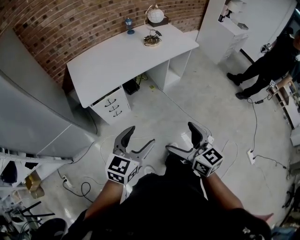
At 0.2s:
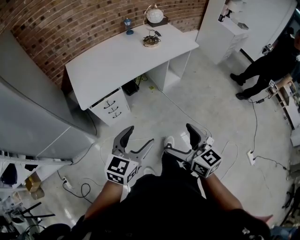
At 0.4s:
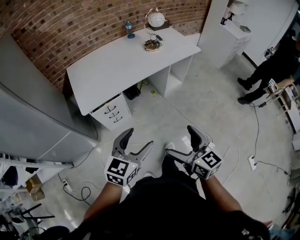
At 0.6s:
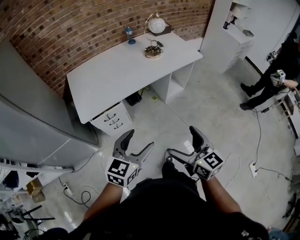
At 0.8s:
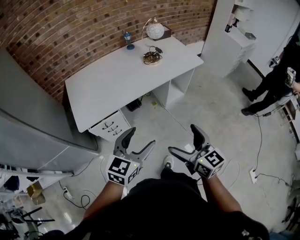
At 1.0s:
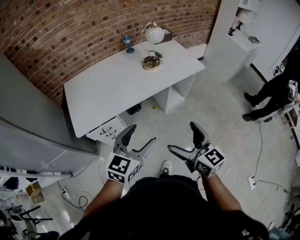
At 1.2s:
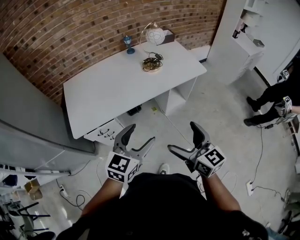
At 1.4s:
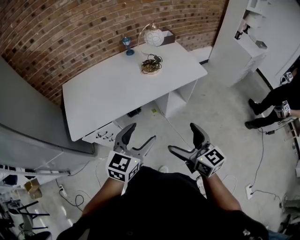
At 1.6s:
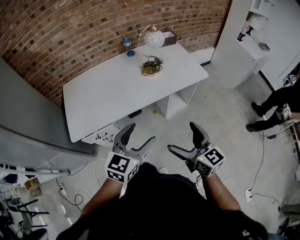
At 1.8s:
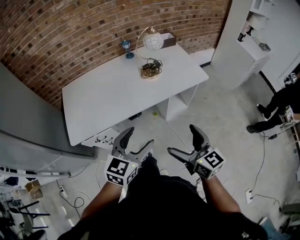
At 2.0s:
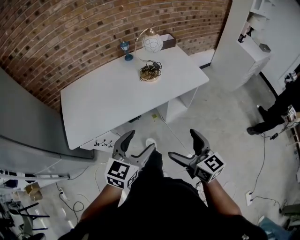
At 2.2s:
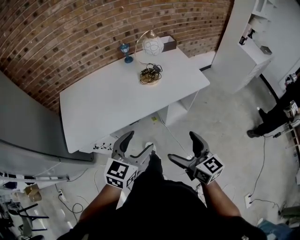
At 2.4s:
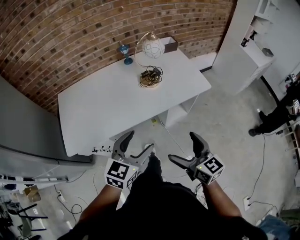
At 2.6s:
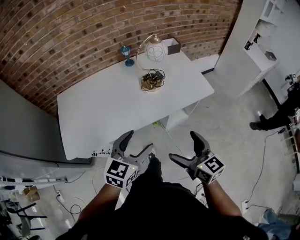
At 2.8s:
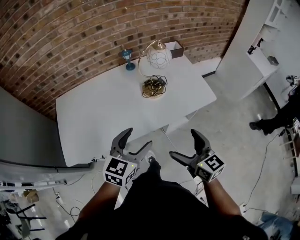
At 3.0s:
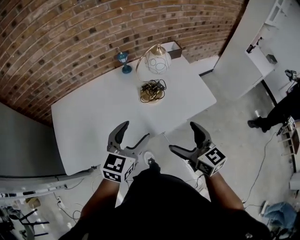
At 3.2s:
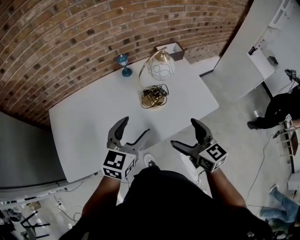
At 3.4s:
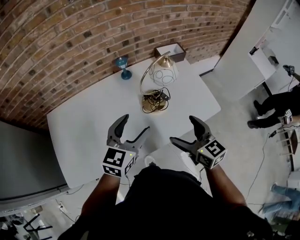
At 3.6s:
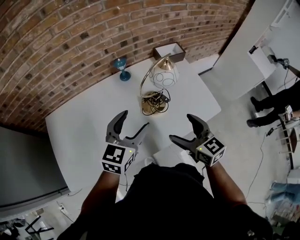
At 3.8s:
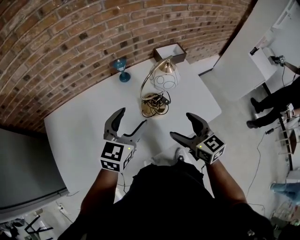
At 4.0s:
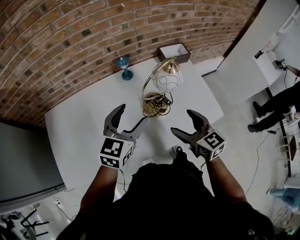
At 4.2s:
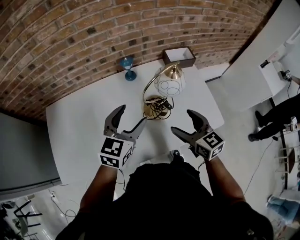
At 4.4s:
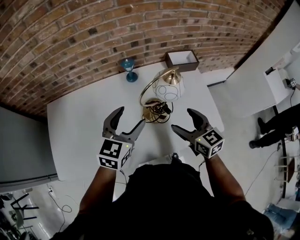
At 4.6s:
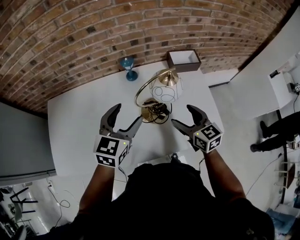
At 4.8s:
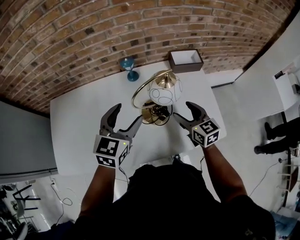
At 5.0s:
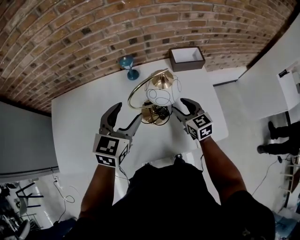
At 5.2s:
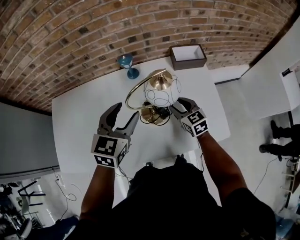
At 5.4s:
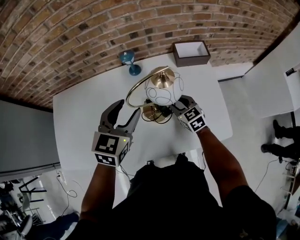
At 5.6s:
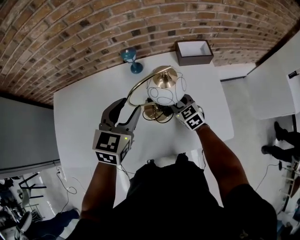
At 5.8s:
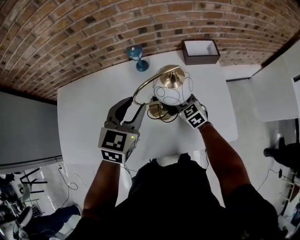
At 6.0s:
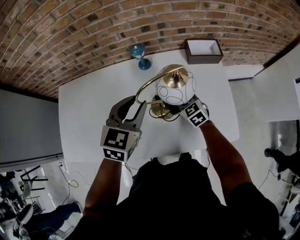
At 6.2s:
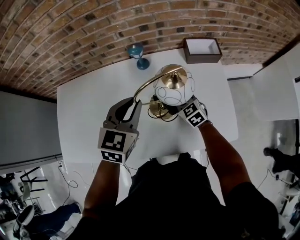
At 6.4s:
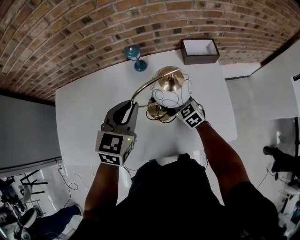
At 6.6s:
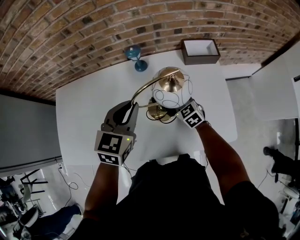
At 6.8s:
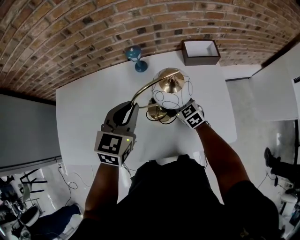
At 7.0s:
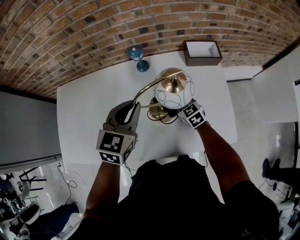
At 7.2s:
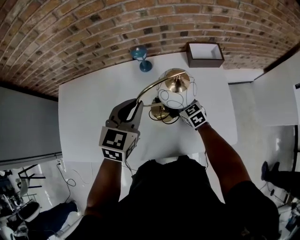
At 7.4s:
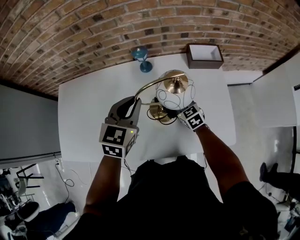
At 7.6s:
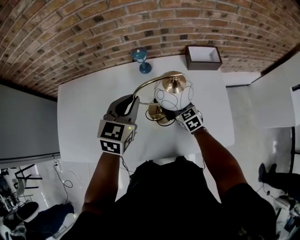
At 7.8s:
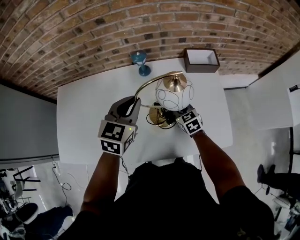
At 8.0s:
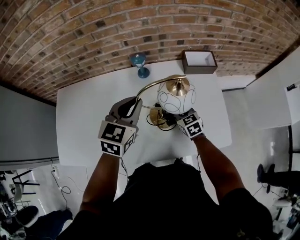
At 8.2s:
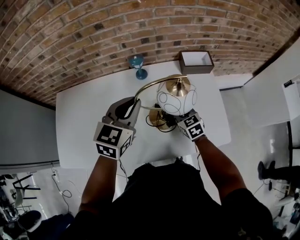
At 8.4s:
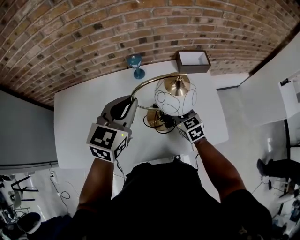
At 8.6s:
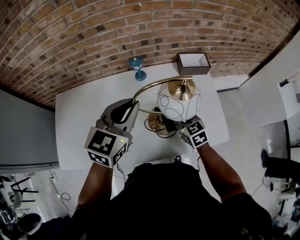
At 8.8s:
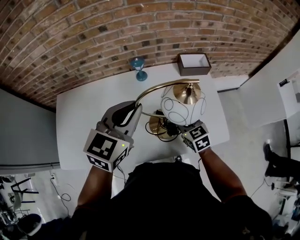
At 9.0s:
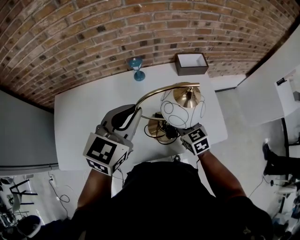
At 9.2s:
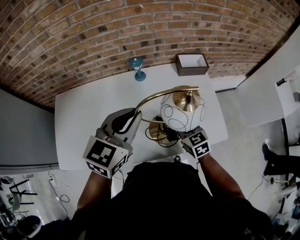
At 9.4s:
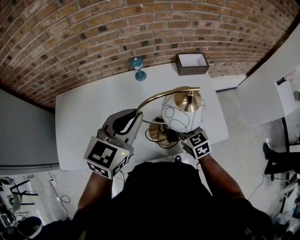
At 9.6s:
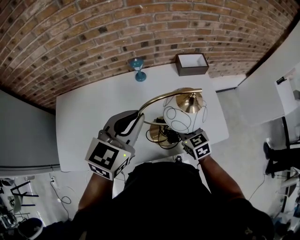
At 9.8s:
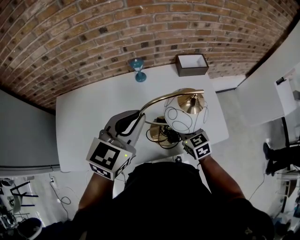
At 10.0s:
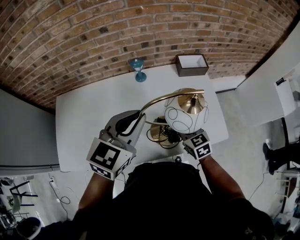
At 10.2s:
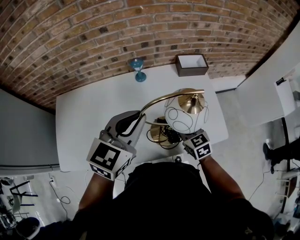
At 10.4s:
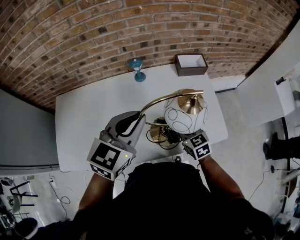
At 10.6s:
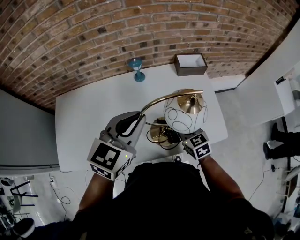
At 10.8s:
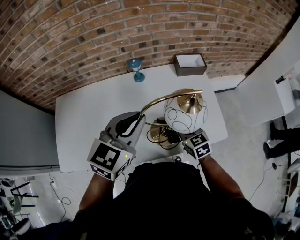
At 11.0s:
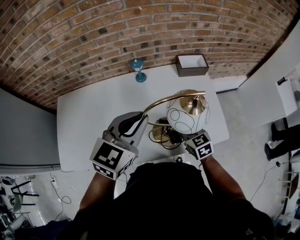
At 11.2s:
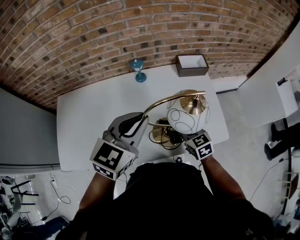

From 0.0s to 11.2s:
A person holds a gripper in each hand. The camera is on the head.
From 0.0s to 1.6s: Both grippers travel together forward and to the right, approximately 35 cm.
From 1.6s to 3.2s: Both grippers travel together forward, about 30 cm.
From 3.2s to 4.8s: The grippers both shift forward by about 20 cm.
From 4.8s to 6.4s: The left gripper closes up; the right gripper heads downward and forward, covering about 15 cm, turns by roughly 30 degrees, and closes its fingers.
From 6.4s to 8.0s: There are only small adjustments of the grippers.
From 8.0s to 9.6s: Both grippers move backward and upward, some 15 cm.
From 9.6s to 11.2s: The grippers make only small movements.

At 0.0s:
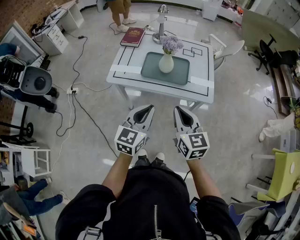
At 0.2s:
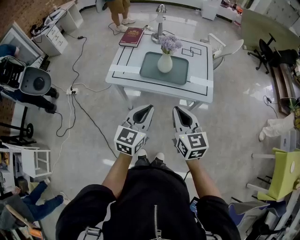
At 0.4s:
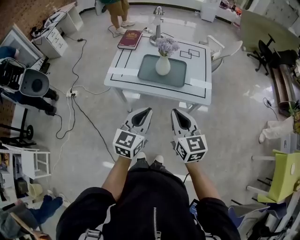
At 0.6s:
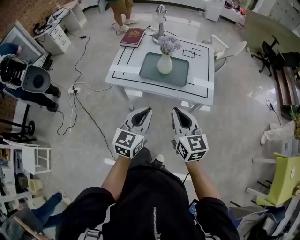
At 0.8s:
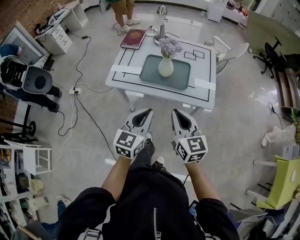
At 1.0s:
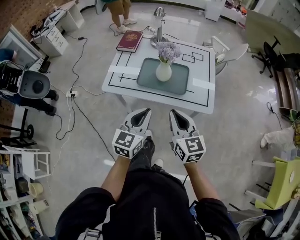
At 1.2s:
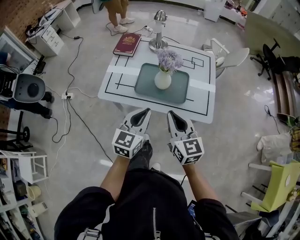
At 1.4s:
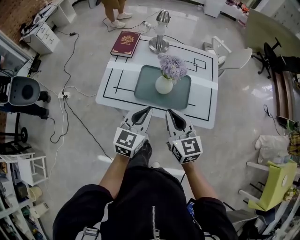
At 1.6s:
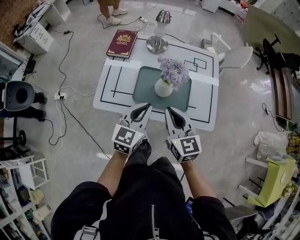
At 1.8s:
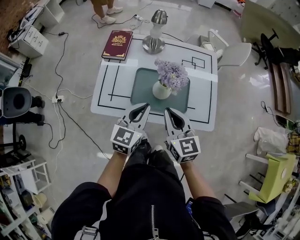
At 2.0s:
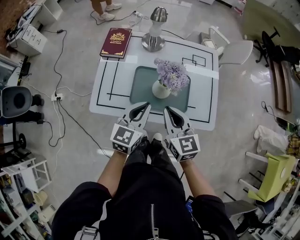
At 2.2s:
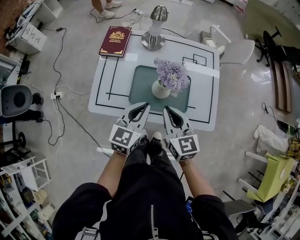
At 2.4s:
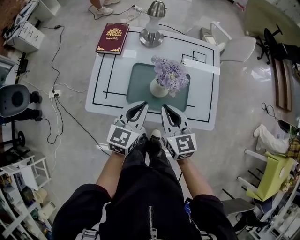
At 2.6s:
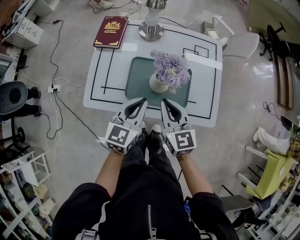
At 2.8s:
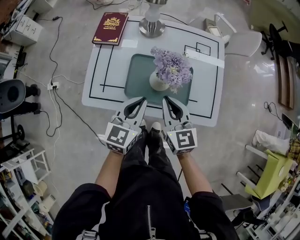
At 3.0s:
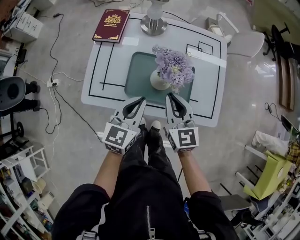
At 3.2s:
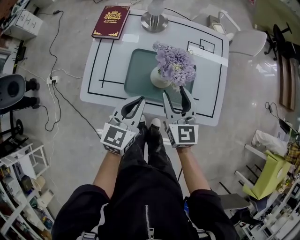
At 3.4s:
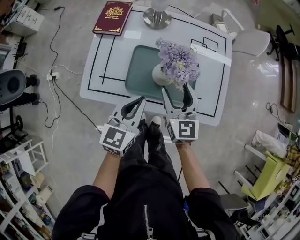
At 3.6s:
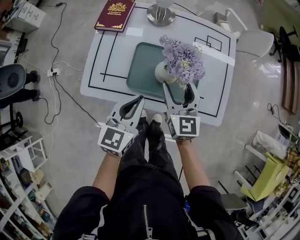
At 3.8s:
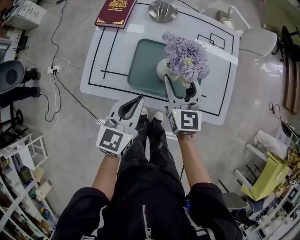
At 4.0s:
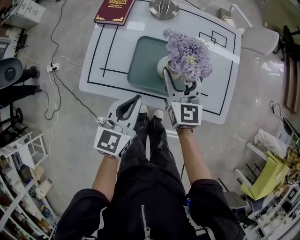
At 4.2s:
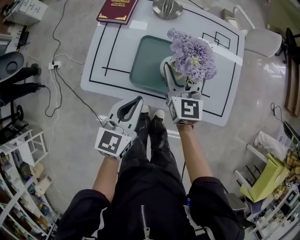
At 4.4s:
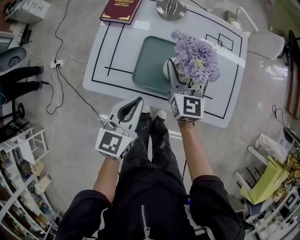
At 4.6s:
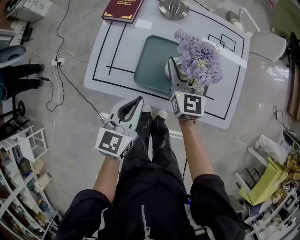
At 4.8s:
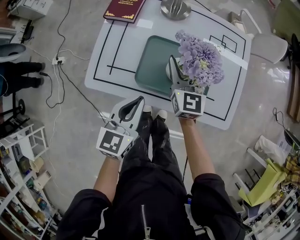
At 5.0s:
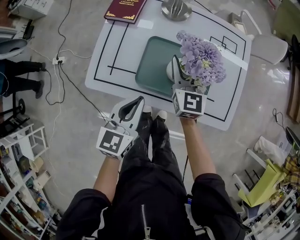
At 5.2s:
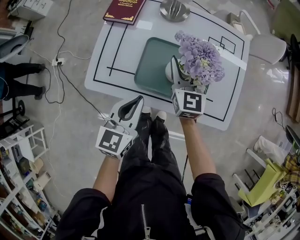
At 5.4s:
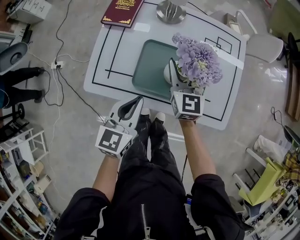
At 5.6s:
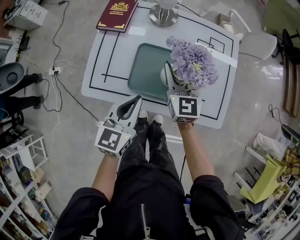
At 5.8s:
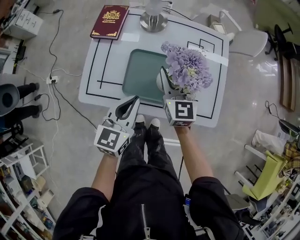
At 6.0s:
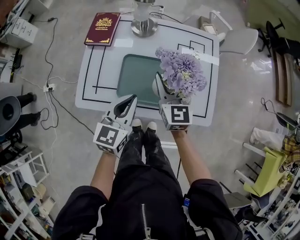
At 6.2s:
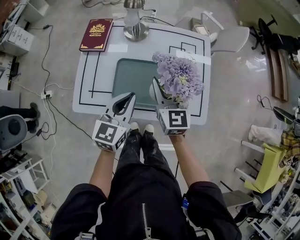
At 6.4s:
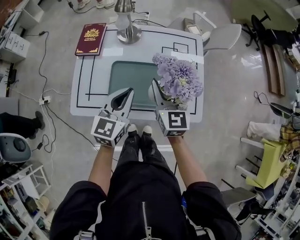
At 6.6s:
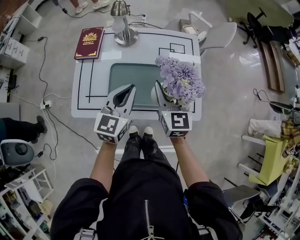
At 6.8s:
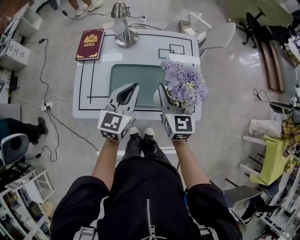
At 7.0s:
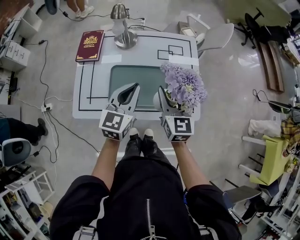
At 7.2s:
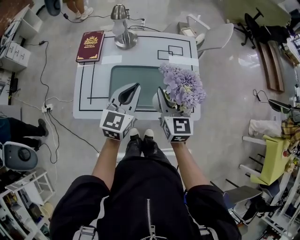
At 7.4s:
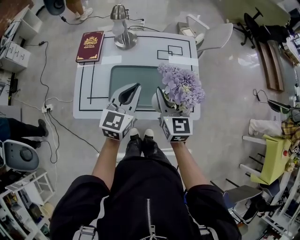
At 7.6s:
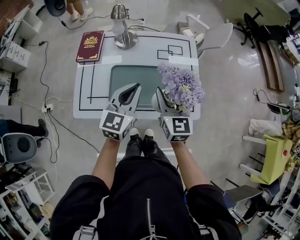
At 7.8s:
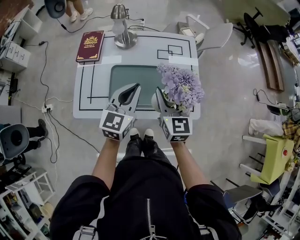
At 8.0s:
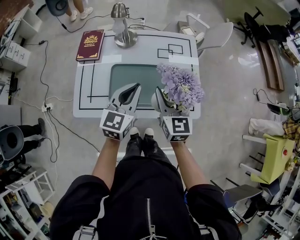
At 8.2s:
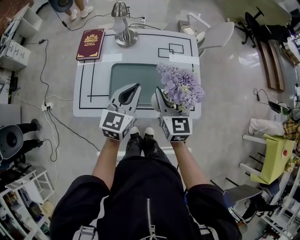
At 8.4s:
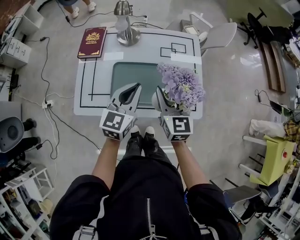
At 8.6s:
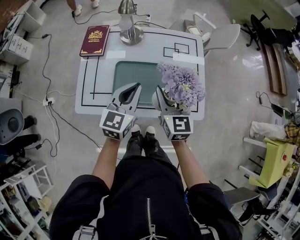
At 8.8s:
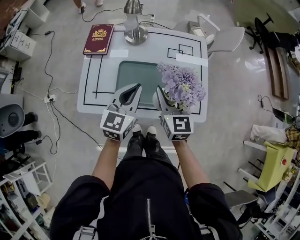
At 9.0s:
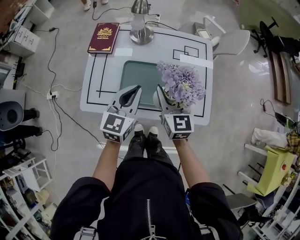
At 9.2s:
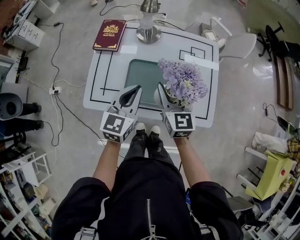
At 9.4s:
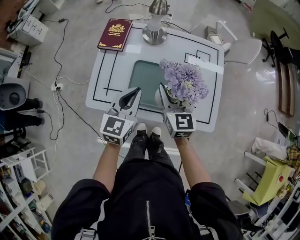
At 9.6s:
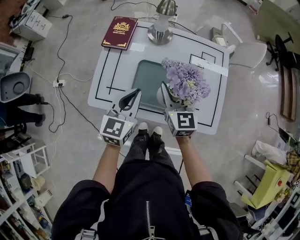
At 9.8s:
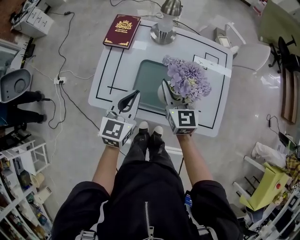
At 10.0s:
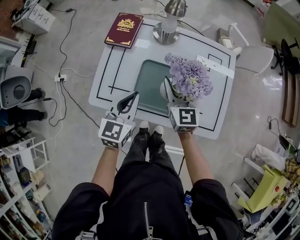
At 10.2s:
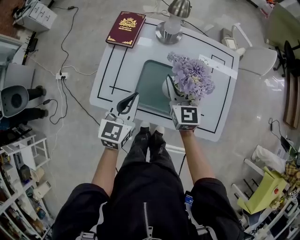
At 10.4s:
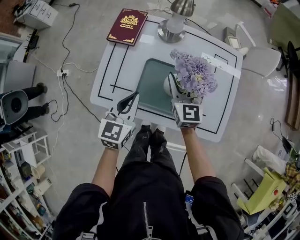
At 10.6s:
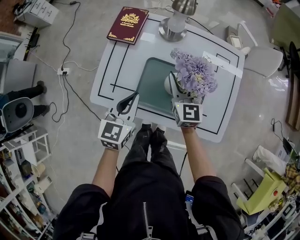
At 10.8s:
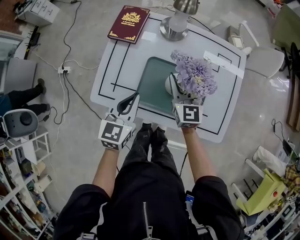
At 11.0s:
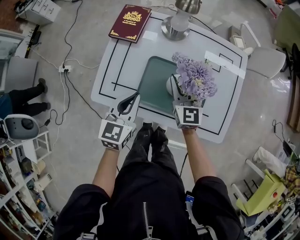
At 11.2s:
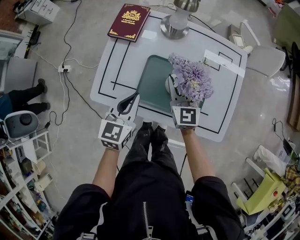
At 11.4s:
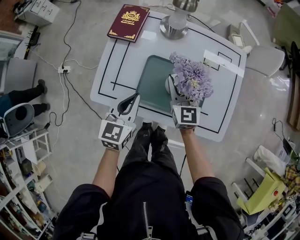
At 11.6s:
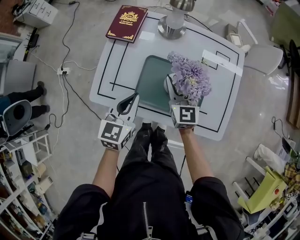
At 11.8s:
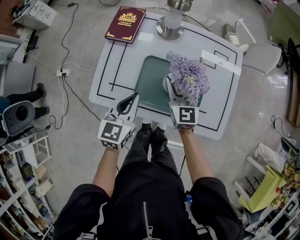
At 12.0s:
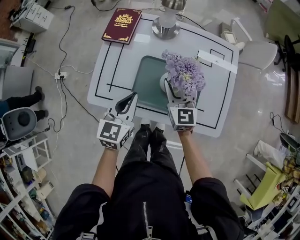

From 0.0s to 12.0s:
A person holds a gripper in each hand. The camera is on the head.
From 0.0s to 1.6s: The two grippers go about 25 cm forward.
From 1.6s to 3.0s: The left gripper is displaced downward and forward by about 10 cm. Meanwhile the right gripper goes roughly 10 cm forward and downward.
From 3.0s to 4.4s: The left gripper shifts by some 5 cm. The right gripper heads forward, covering roughly 10 cm, and opens its fingers.
From 4.4s to 6.0s: The right gripper shifts approximately 5 cm upward, while the left gripper shifts by some 10 cm.
From 6.0s to 7.6s: The left gripper travels upward and to the right by roughly 10 cm, while the right gripper is displaced to the right, backward and upward by roughly 10 cm.
From 7.6s to 9.0s: Both grippers move to the left, about 5 cm.
From 9.0s to 10.4s: The left gripper heads to the left and downward, covering about 10 cm. The right gripper travels forward, downward and to the left by roughly 15 cm.
From 10.4s to 12.0s: The grippers make only small movements.

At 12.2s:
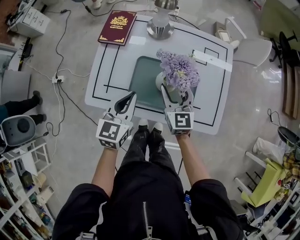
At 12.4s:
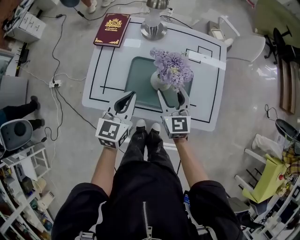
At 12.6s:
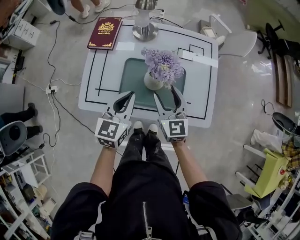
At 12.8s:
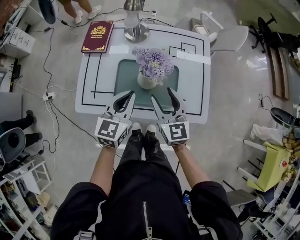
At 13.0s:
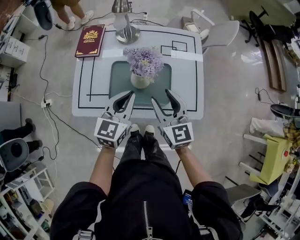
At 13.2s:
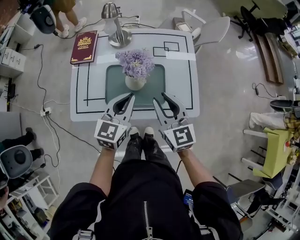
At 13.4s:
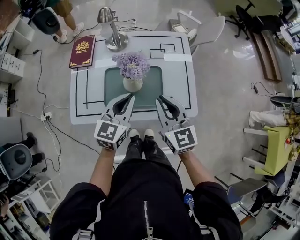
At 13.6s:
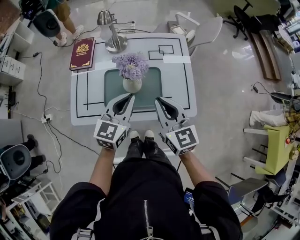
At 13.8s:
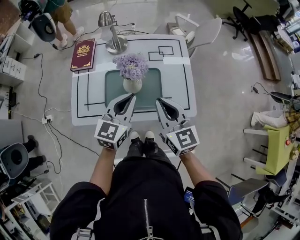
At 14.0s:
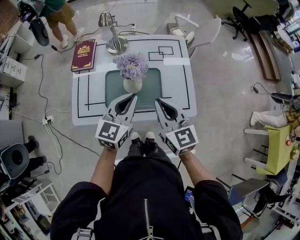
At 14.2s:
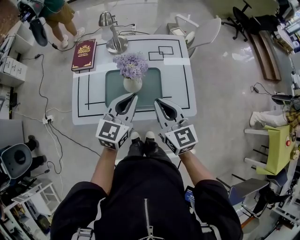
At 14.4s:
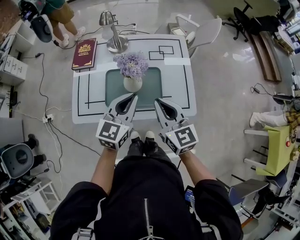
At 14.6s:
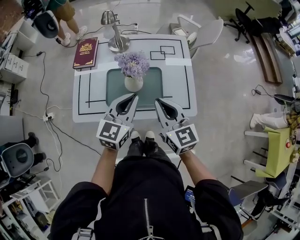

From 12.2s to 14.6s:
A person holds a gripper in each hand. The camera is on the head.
From 12.2s to 13.4s: The left gripper is displaced to the right and upward by about 15 cm. Meanwhile the right gripper goes roughly 20 cm upward, backward and to the right, and closes.
From 13.4s to 14.6s: There are only small adjustments of the grippers.
